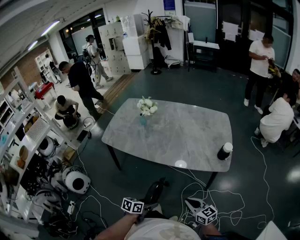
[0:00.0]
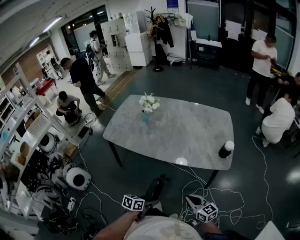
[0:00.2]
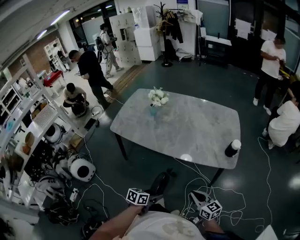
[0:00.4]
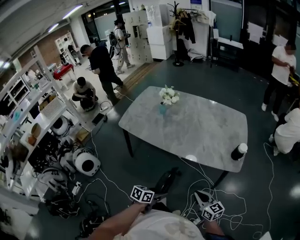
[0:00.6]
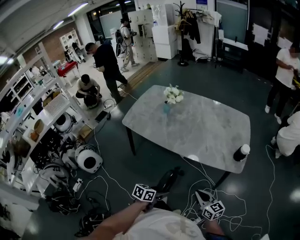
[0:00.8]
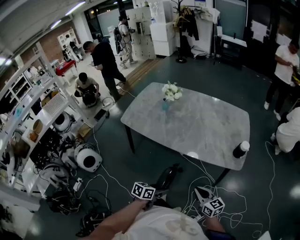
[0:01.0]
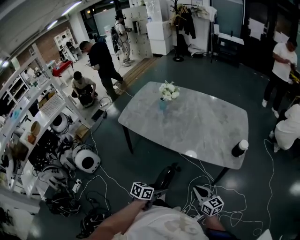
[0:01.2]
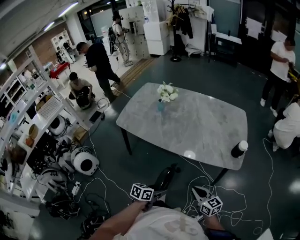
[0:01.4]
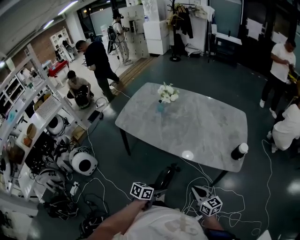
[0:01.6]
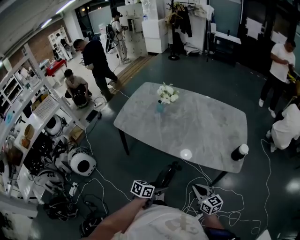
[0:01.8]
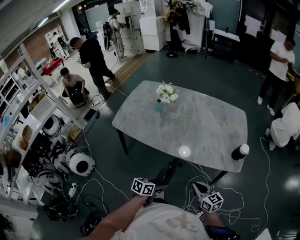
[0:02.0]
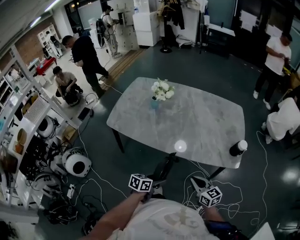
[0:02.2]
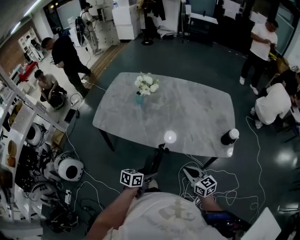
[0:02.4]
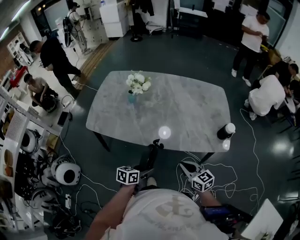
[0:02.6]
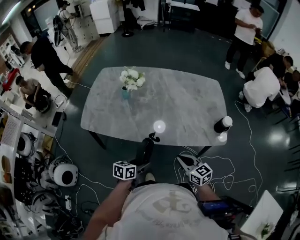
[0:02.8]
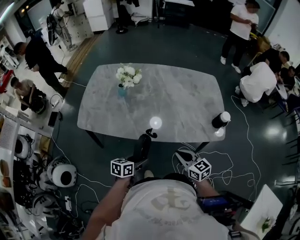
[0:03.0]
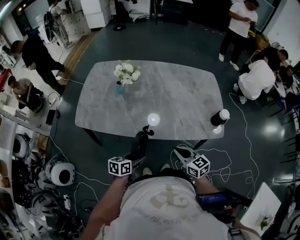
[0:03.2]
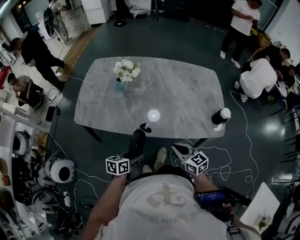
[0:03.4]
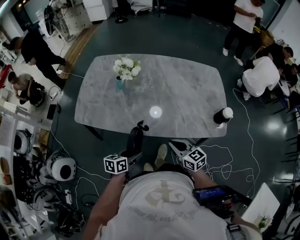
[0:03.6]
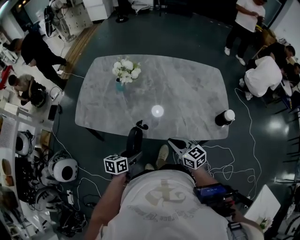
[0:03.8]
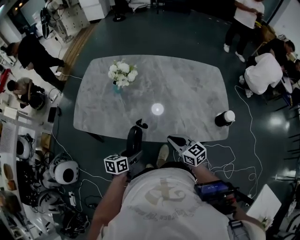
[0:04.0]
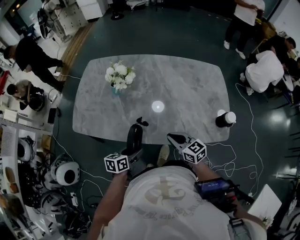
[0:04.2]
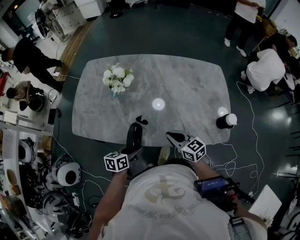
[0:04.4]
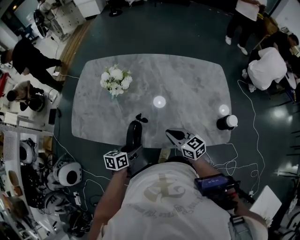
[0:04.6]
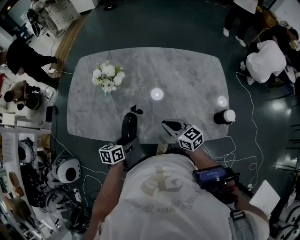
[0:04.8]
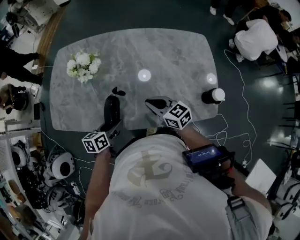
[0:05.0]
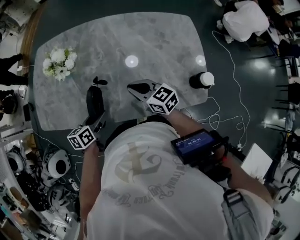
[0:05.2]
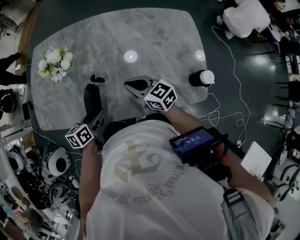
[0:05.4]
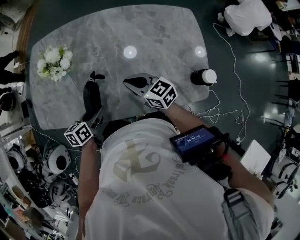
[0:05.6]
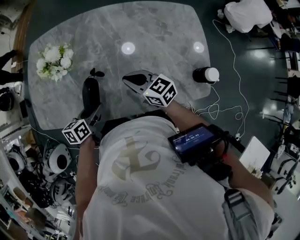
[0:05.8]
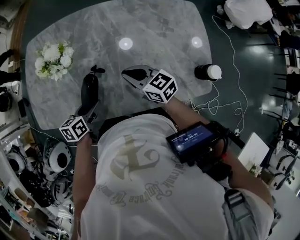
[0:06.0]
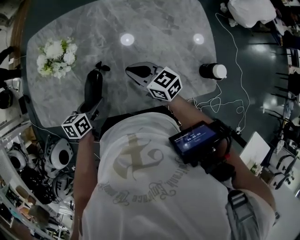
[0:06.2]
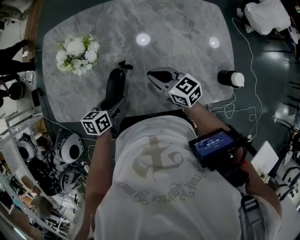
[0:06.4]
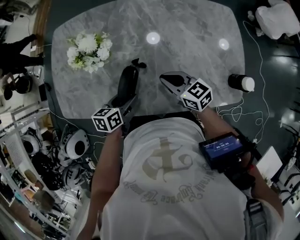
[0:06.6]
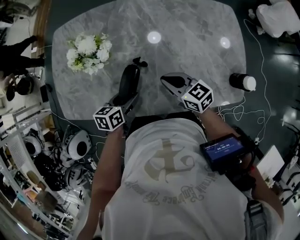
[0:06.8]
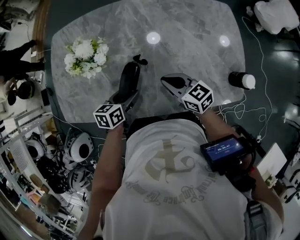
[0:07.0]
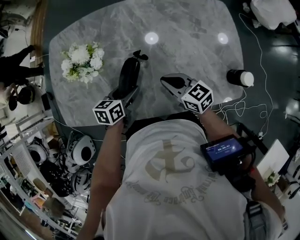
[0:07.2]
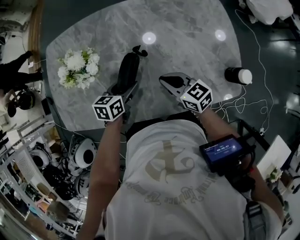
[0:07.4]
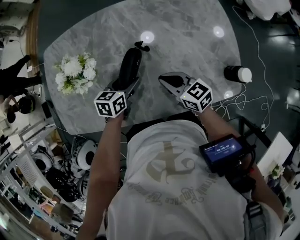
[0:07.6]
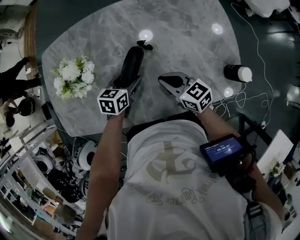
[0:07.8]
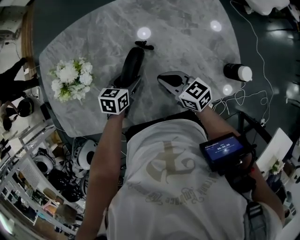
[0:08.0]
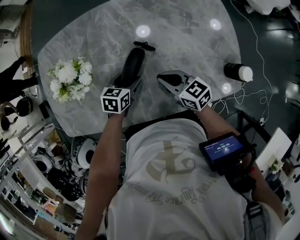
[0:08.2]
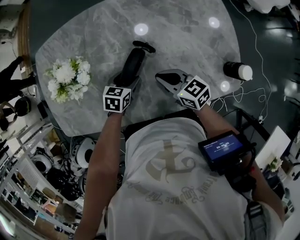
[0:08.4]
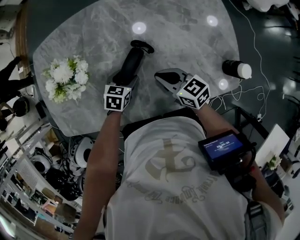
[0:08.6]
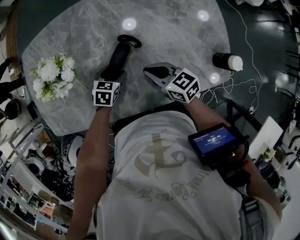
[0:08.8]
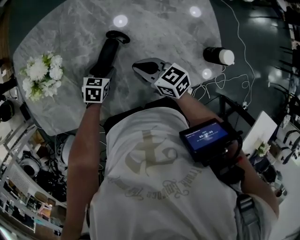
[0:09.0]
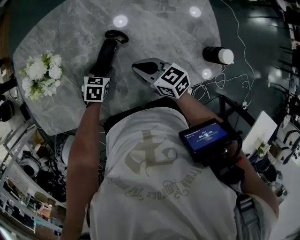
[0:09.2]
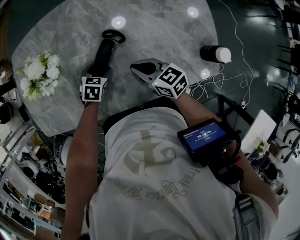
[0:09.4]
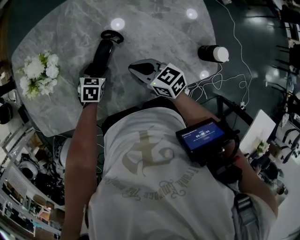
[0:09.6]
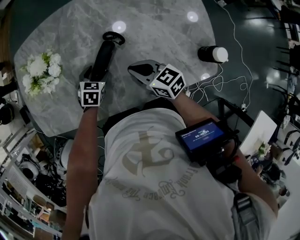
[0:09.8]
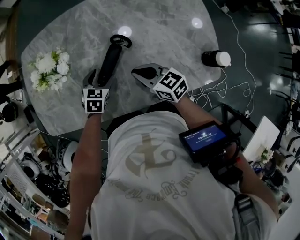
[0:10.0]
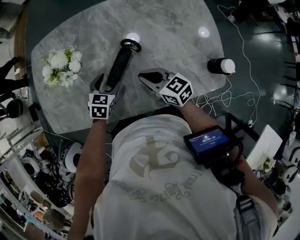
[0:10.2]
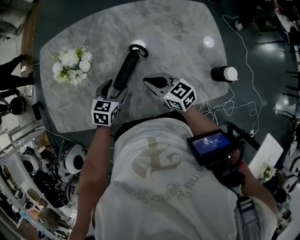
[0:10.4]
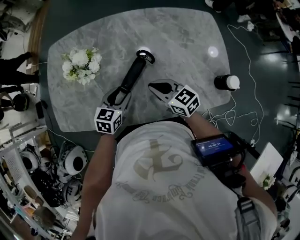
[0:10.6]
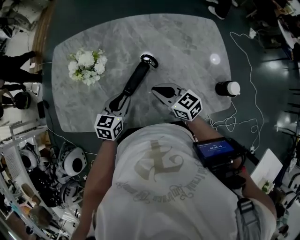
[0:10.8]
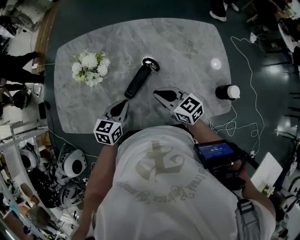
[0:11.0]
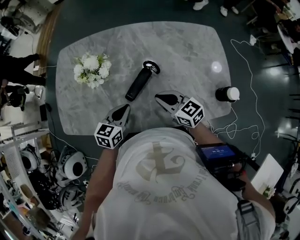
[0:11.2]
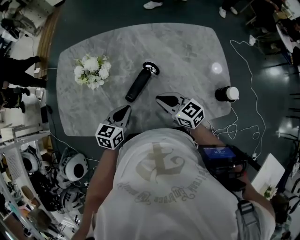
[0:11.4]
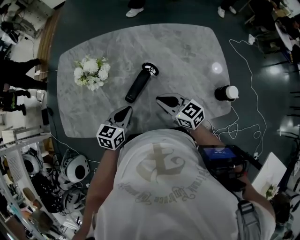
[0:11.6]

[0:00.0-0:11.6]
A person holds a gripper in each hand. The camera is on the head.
0:00.0 to 0:01.4: The right gripper moves approximately 5 cm.
0:01.4 to 0:02.8: Both grippers move forward and to the left, about 15 cm.
0:02.8 to 0:04.4: Both grippers travel together forward, roughly 15 cm.
0:04.4 to 0:05.8: The grippers both shift forward by about 10 cm.
0:05.8 to 0:07.2: The left gripper is displaced forward by about 5 cm.
0:07.2 to 0:08.8: The left gripper heads downward and forward, covering approximately 10 cm, and turns by roughly 30 degrees.
0:08.8 to 0:10.2: The left gripper shifts some 5 cm upward.
0:10.2 to 0:11.6: The left gripper moves upward and backward, roughly 10 cm, turns by approximately 20 degrees, and closes up.

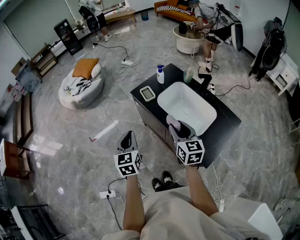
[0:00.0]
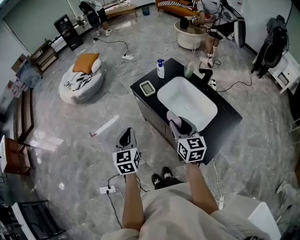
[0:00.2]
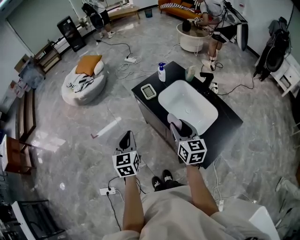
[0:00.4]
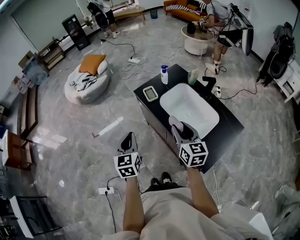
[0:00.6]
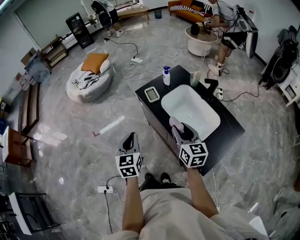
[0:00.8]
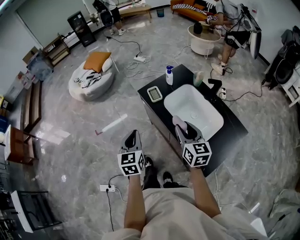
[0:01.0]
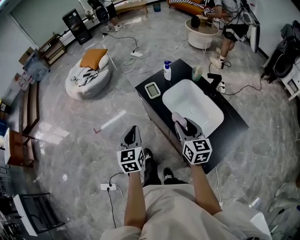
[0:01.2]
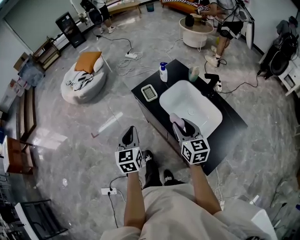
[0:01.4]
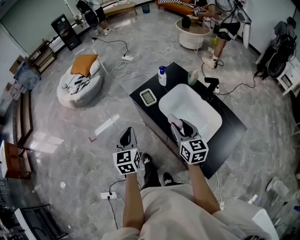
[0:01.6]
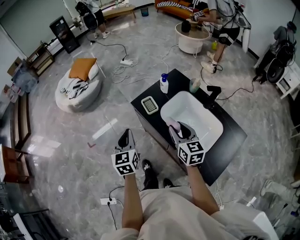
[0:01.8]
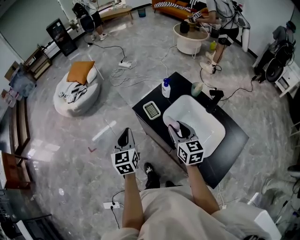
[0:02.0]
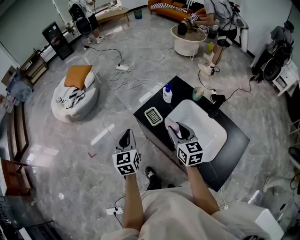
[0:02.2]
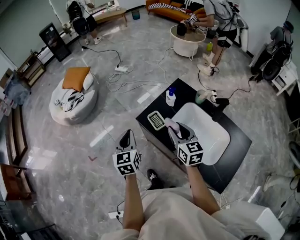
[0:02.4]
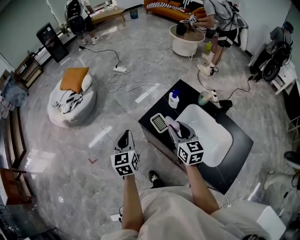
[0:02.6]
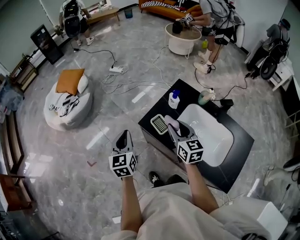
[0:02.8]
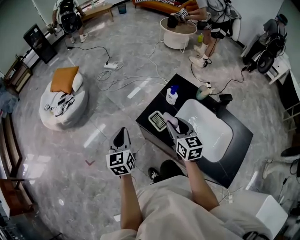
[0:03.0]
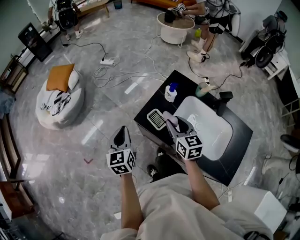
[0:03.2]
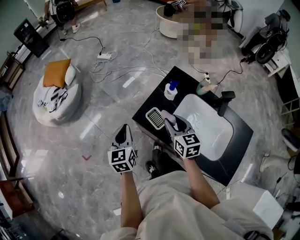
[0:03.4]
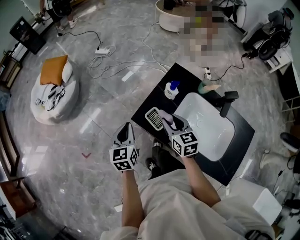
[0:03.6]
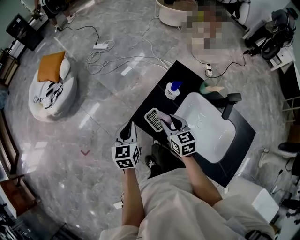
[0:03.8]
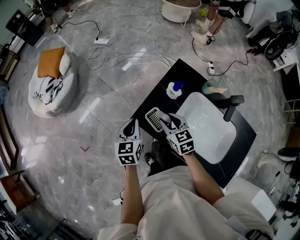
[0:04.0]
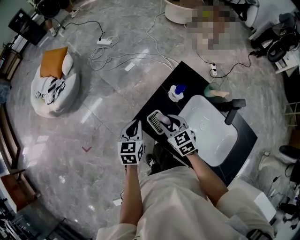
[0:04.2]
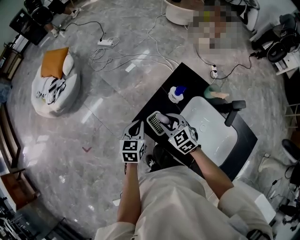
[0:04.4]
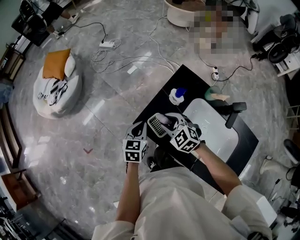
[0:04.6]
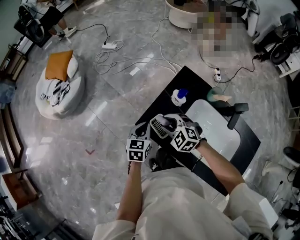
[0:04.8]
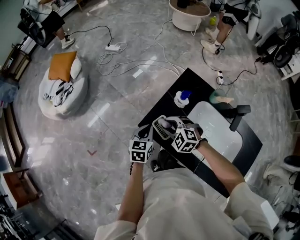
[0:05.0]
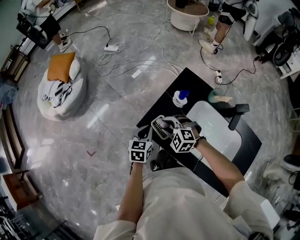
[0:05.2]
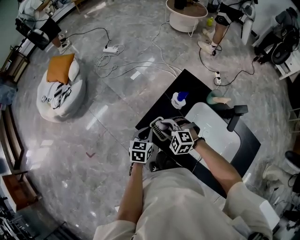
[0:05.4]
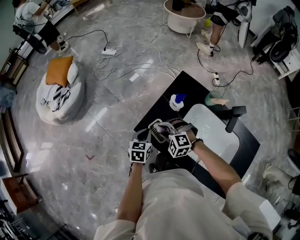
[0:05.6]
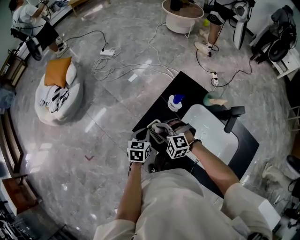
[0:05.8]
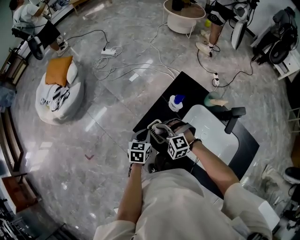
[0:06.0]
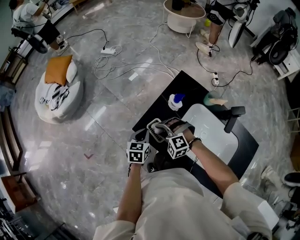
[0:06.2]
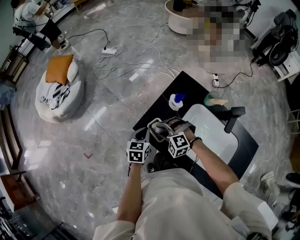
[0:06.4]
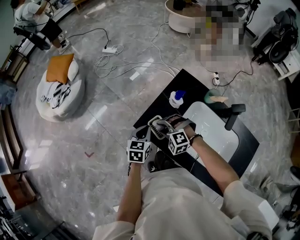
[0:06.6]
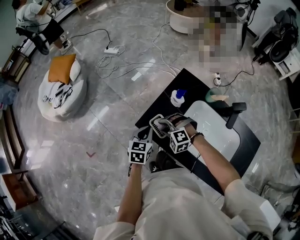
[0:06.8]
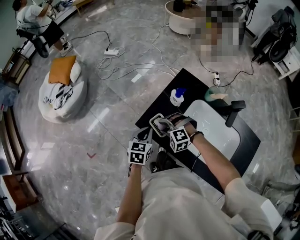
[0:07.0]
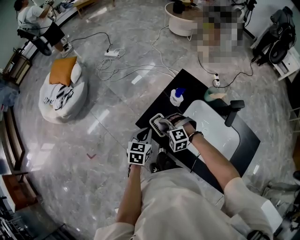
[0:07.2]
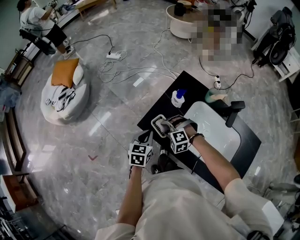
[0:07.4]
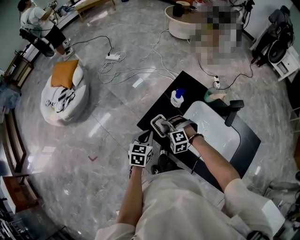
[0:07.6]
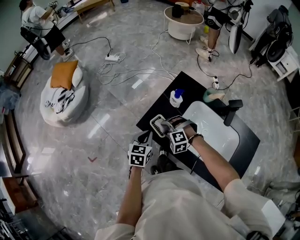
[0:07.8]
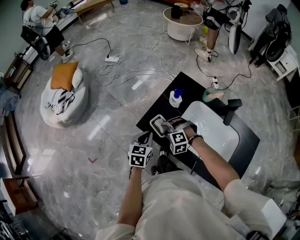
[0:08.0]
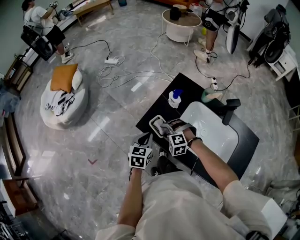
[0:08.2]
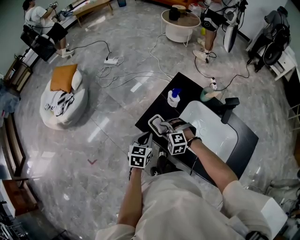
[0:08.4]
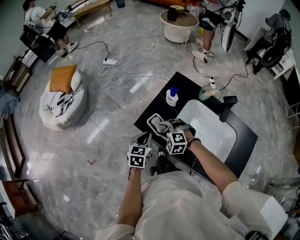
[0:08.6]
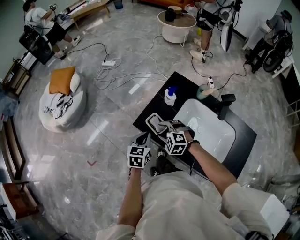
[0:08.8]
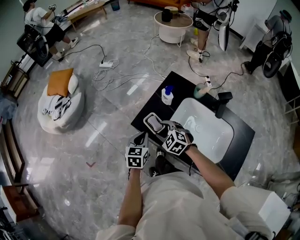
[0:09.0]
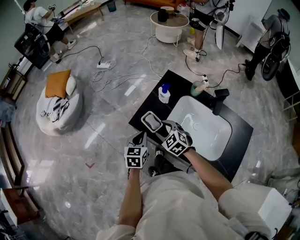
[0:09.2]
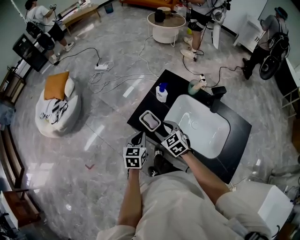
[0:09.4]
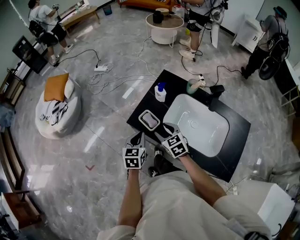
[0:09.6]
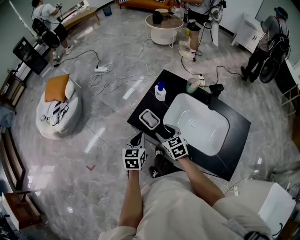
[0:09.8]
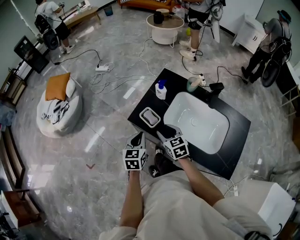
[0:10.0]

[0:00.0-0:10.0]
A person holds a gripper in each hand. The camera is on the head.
0:00.0 to 0:01.4: The grippers both shift forward by about 5 cm.
0:01.4 to 0:02.8: Both grippers travel together forward, about 20 cm.
0:02.8 to 0:04.2: The left gripper goes some 15 cm downward, forward and to the right, and turns by roughly 20 degrees, while the right gripper shifts approximately 15 cm downward and forward, and turns by roughly 30 degrees.
0:04.2 to 0:05.8: The left gripper travels downward by about 10 cm. Meanwhile the right gripper moves roughly 5 cm, and rotates around the line of its fingers by some 50 degrees, counterclockwise from behind.
0:05.8 to 0:07.2: The left gripper shifts by roughly 5 cm.
0:07.2 to 0:08.6: The grippers stay close to where they were, moving slightly.
0:08.6 to 0:10.0: The left gripper shifts by about 5 cm. Meanwhile the right gripper goes some 5 cm upward and backward, and rolls clockwise, seen from behind, by some 60 degrees.

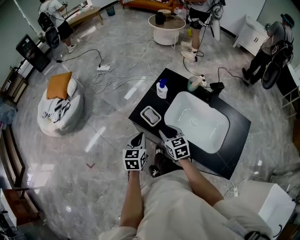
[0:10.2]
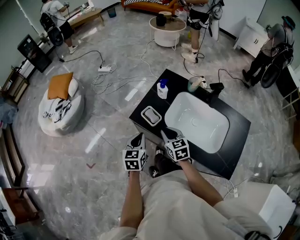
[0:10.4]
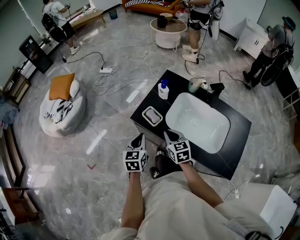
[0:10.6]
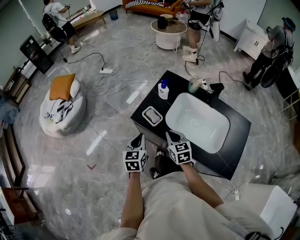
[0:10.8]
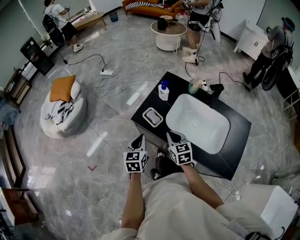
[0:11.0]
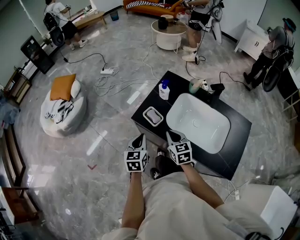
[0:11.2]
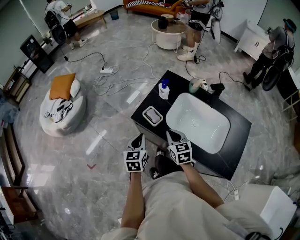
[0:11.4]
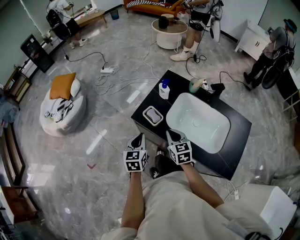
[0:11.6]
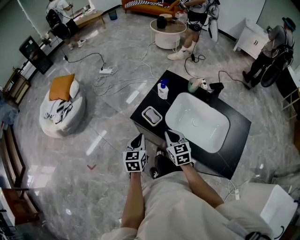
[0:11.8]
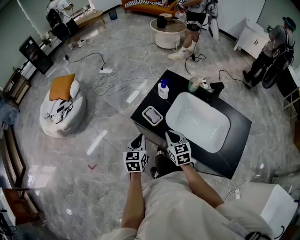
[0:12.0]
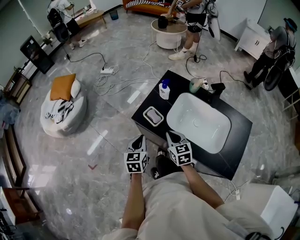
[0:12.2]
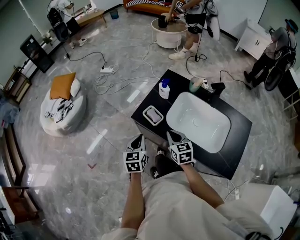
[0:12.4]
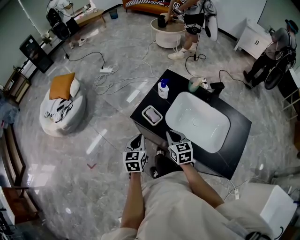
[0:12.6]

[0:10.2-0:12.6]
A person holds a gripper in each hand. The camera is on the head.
0:10.2 to 0:11.4: The right gripper closes.
0:11.4 to 0:12.6: Both grippers stay about where they are.
